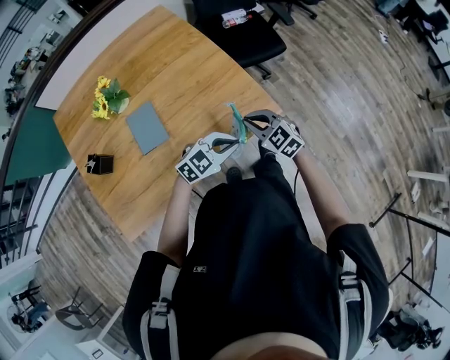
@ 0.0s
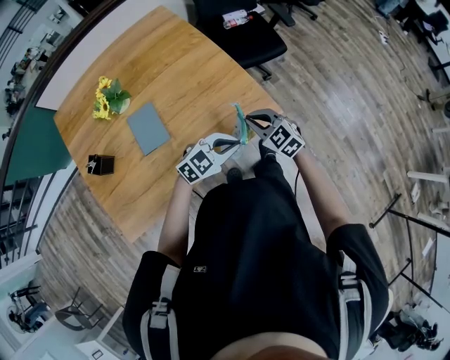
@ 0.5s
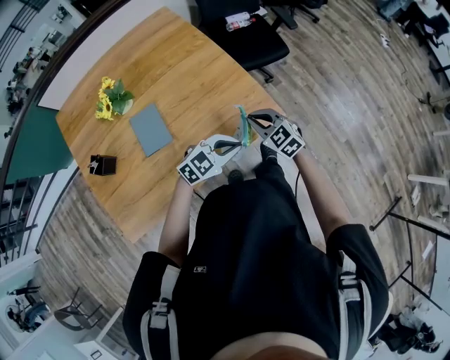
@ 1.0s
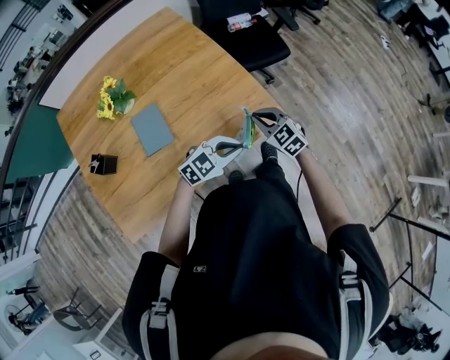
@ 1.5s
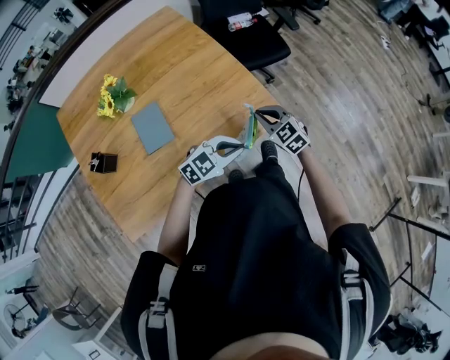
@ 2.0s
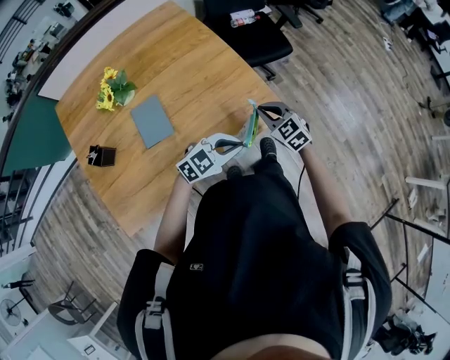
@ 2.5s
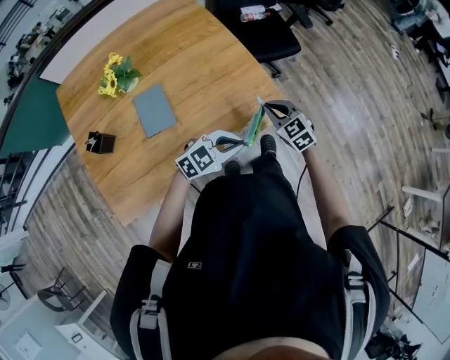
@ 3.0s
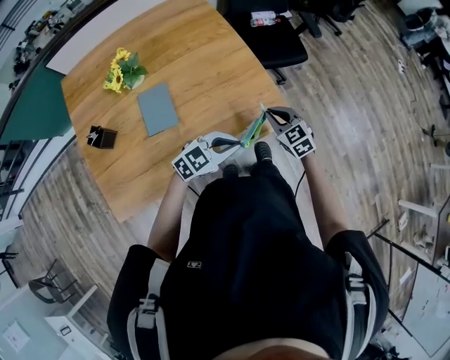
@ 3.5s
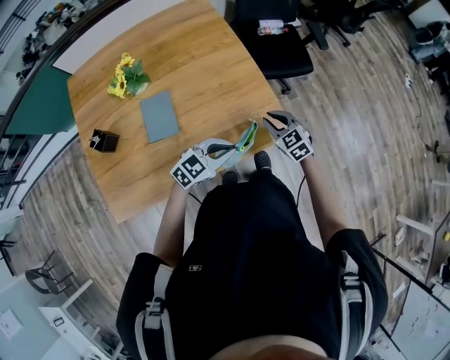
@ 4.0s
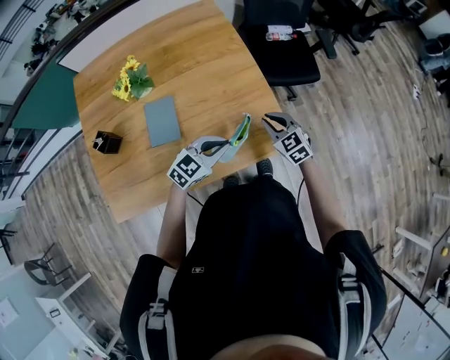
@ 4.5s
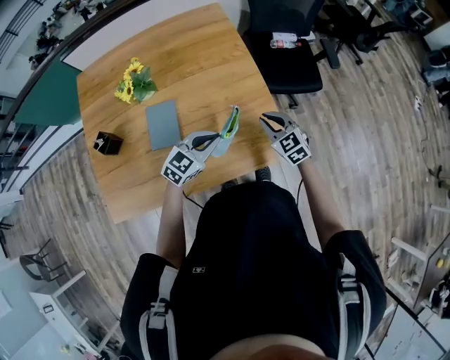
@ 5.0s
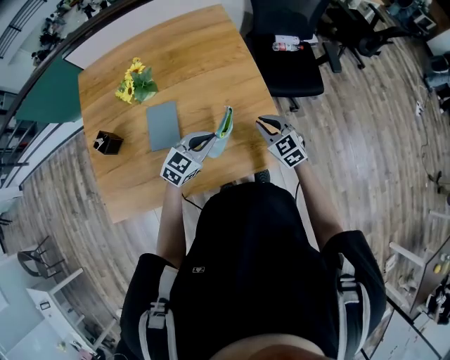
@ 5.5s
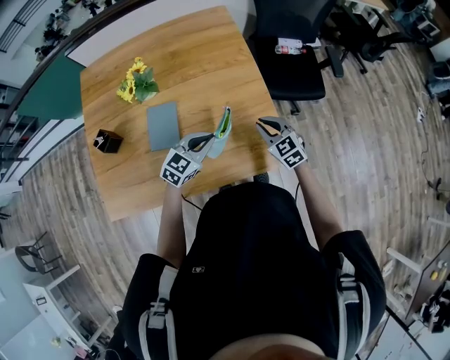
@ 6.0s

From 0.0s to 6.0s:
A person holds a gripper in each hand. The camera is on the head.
From 0.0s to 2.0s: There are only small adjustments of the grippers.
From 2.0s to 4.0s: The left gripper moves roughly 5 cm; the right gripper shifts by roughly 5 cm.
From 4.0s to 6.0s: The right gripper is displaced forward by roughly 5 cm, while the left gripper moves forward and to the left, approximately 15 cm, and swivels some 30 degrees.

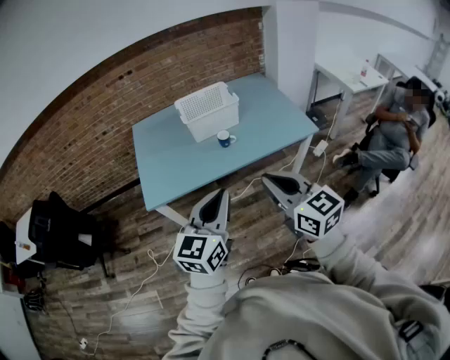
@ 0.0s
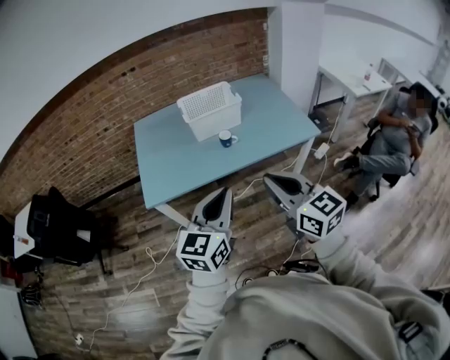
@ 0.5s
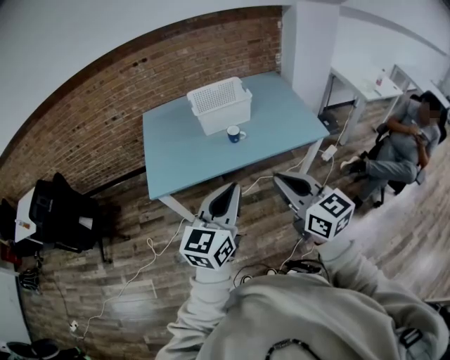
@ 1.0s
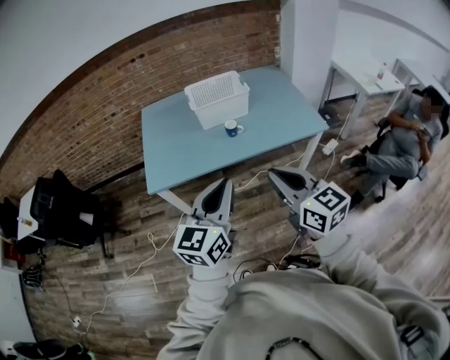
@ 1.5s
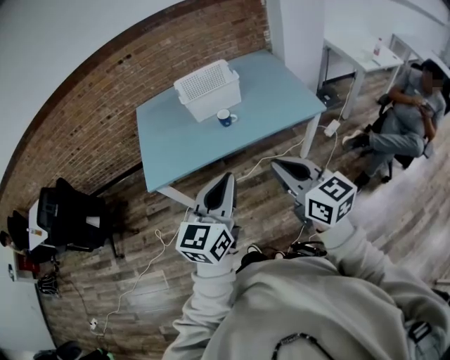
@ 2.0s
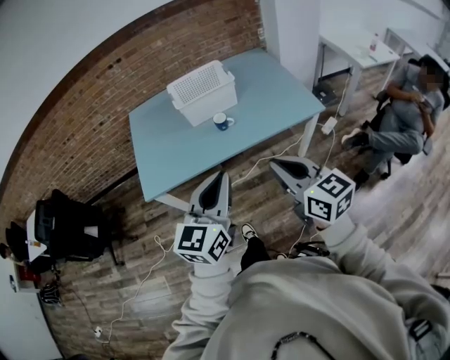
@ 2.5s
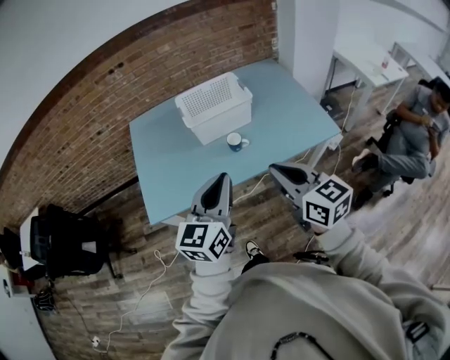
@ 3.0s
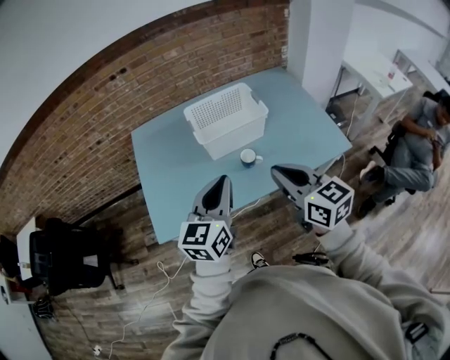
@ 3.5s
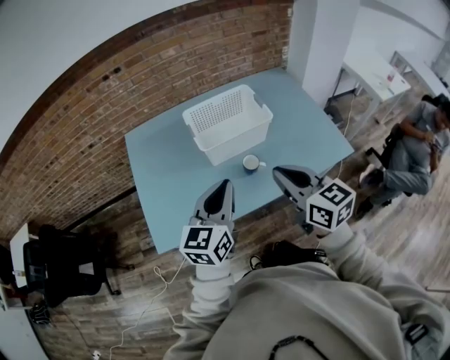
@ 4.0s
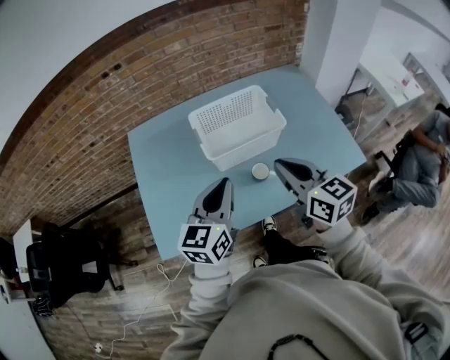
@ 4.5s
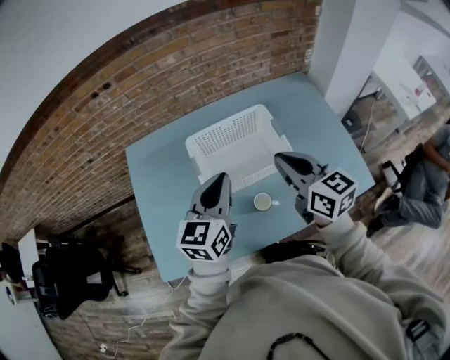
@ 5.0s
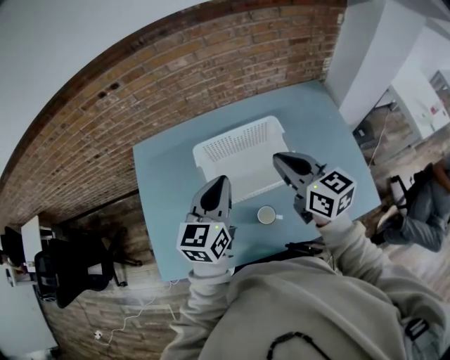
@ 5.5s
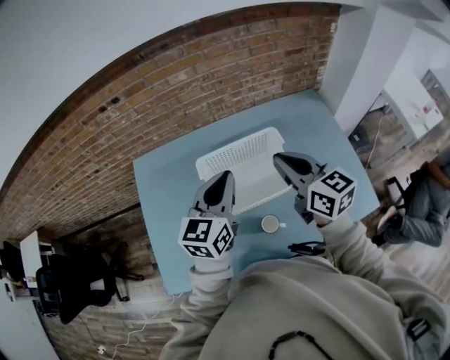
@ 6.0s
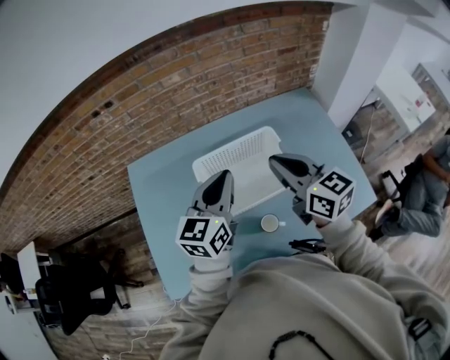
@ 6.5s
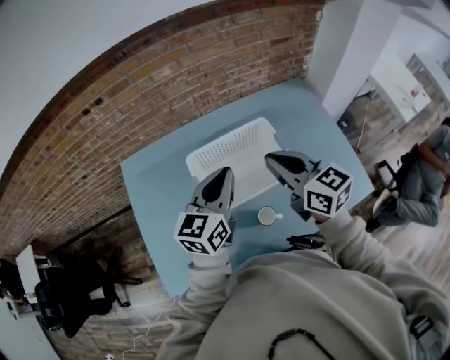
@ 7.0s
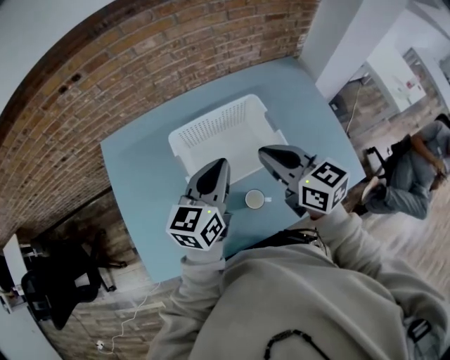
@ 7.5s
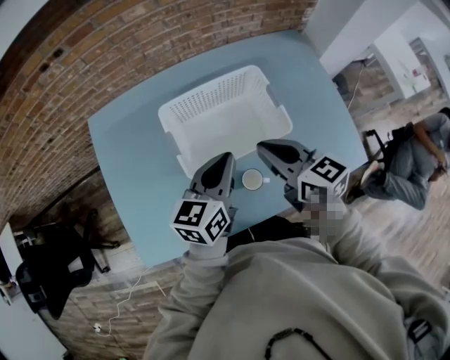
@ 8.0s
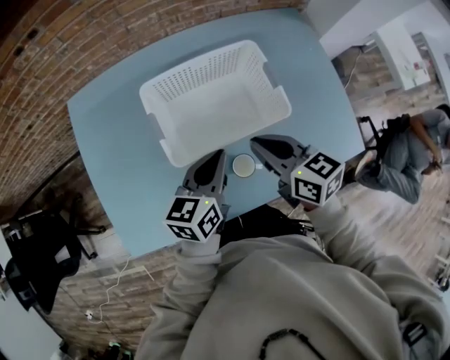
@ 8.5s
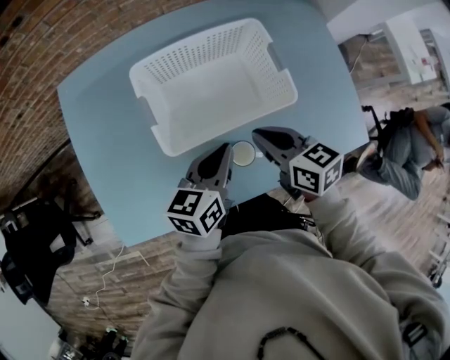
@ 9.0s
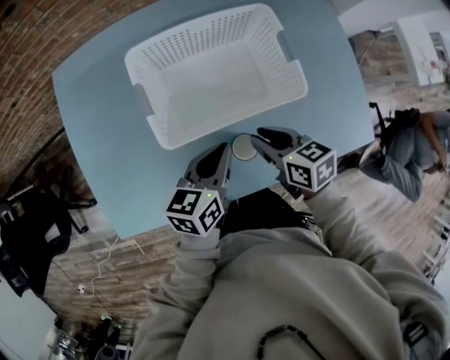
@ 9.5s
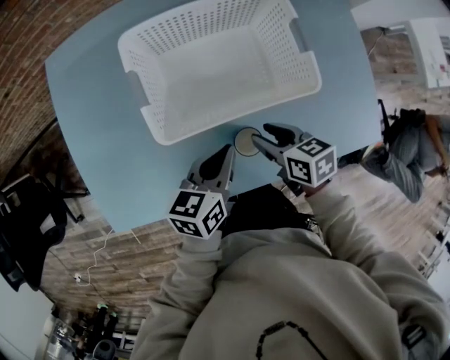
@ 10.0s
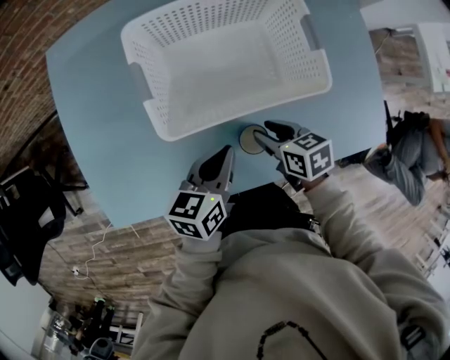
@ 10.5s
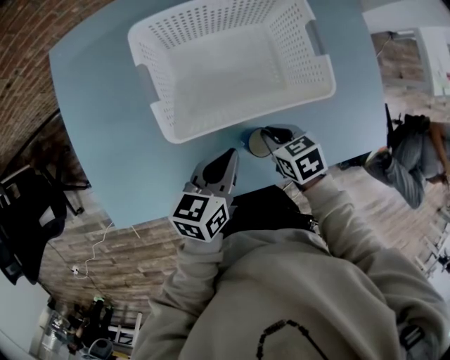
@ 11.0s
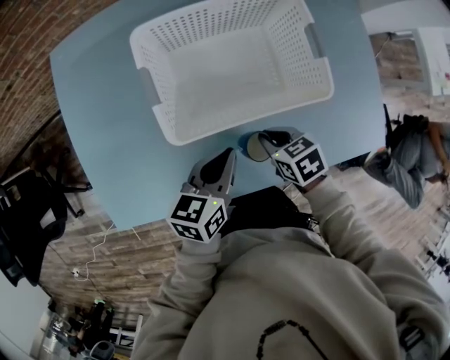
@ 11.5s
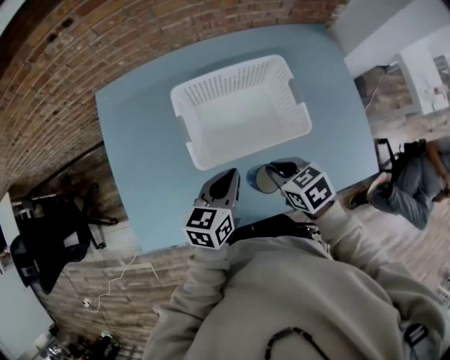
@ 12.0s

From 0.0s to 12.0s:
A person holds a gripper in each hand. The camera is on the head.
From 0.0s to 2.0s: The two grippers go roughly 5 cm to the right.
From 2.0s to 4.0s: The grippers both shift forward by approximately 35 cm.
From 4.0s to 6.0s: The two grippers go some 30 cm forward.
From 6.0s to 8.0s: The left gripper travels downward by roughly 10 cm. Meanwhile the right gripper moves downward and backward, some 15 cm.
From 8.0s to 10.0s: Both grippers travel together downward, approximately 20 cm. The right gripper swivels some 30 degrees, and opens; the left gripper swivels approximately 20 degrees.
From 10.0s to 12.0s: The two grippers go about 10 cm upward. The right gripper closes its fingers.

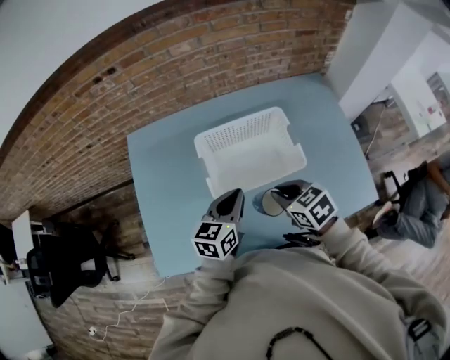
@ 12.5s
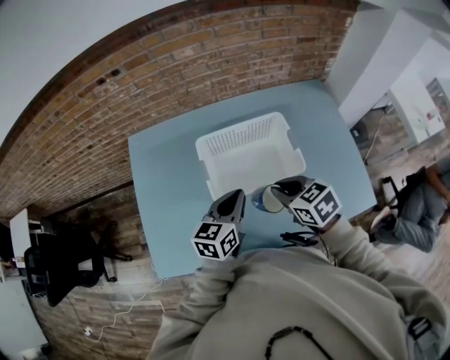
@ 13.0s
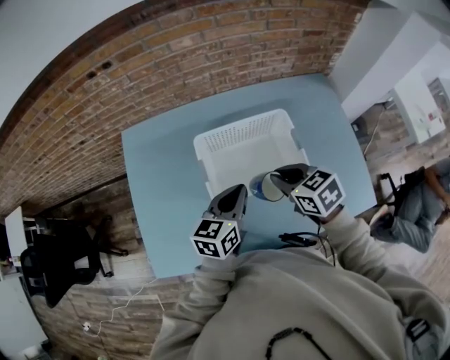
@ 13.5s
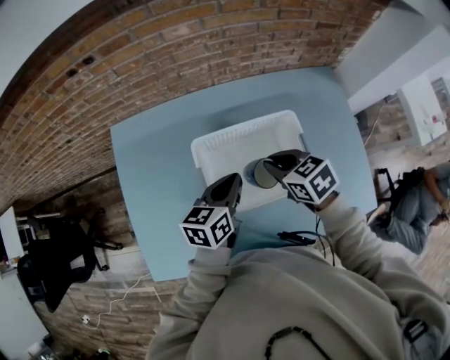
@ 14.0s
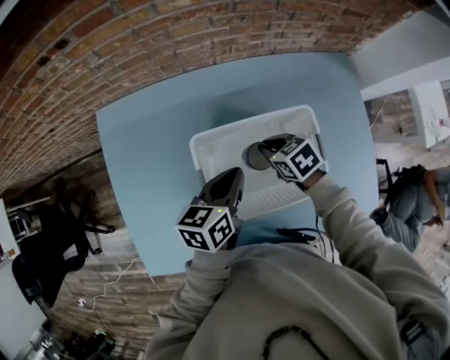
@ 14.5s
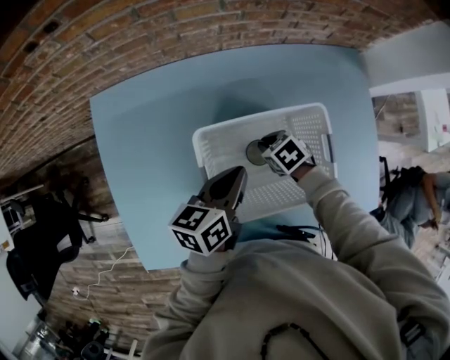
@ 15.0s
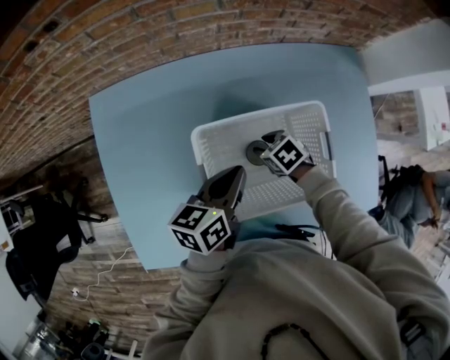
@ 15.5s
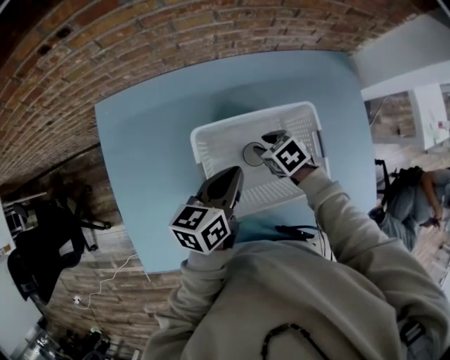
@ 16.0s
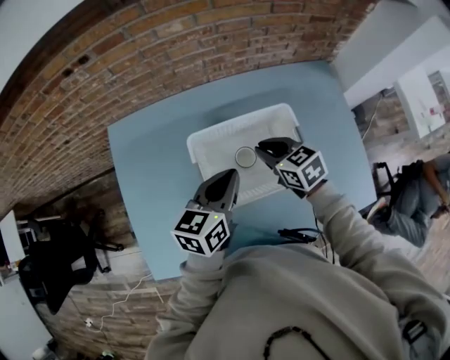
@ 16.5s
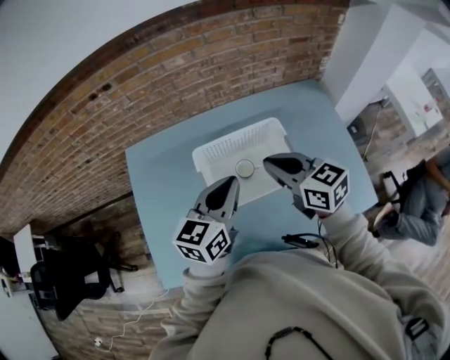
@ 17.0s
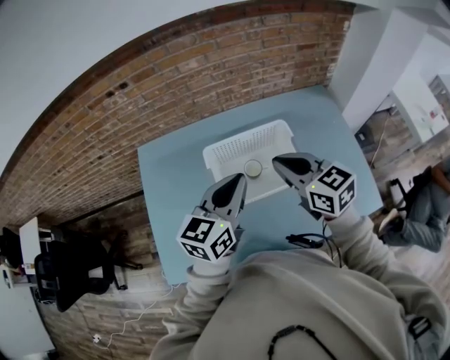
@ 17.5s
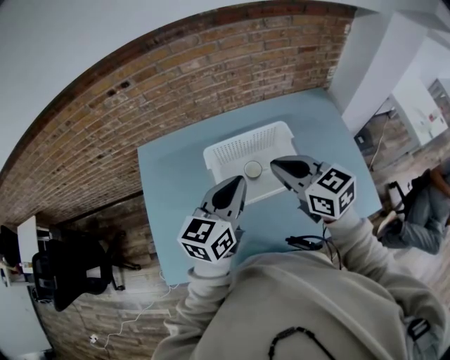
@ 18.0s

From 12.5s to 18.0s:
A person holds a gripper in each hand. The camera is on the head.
From 12.5s to 14.5s: The right gripper travels forward and downward by some 25 cm. Meanwhile the left gripper is displaced forward by roughly 15 cm.
From 14.5s to 16.0s: The right gripper opens.
From 16.0s to 18.0s: The left gripper is displaced upward and backward by approximately 20 cm, and rotates roughly 30 degrees. The right gripper travels upward and backward by some 35 cm, points its fingers approximately 50 degrees further upward, and closes.

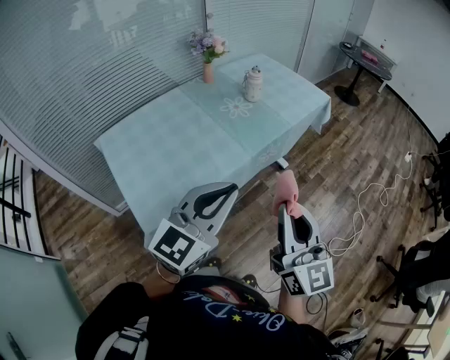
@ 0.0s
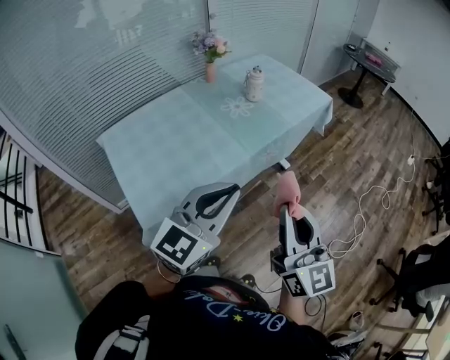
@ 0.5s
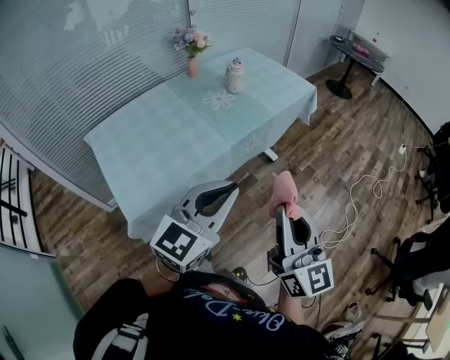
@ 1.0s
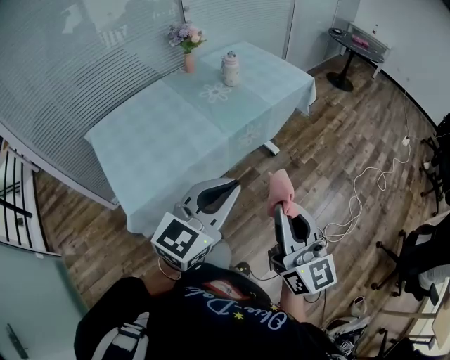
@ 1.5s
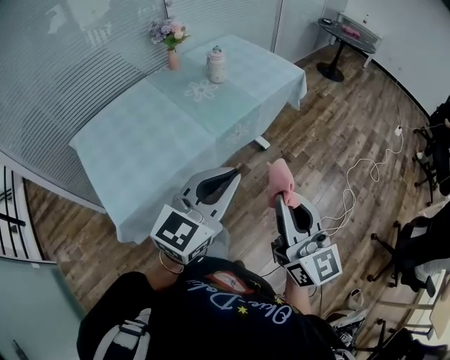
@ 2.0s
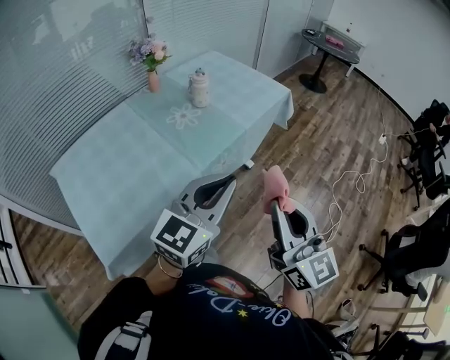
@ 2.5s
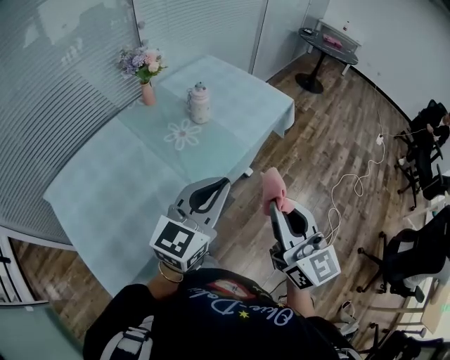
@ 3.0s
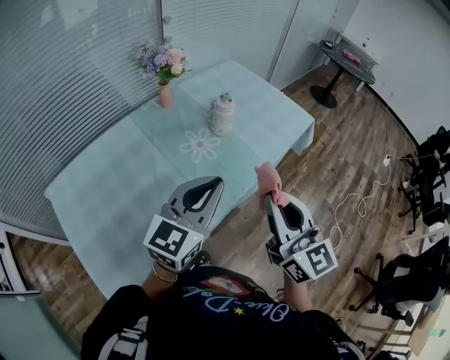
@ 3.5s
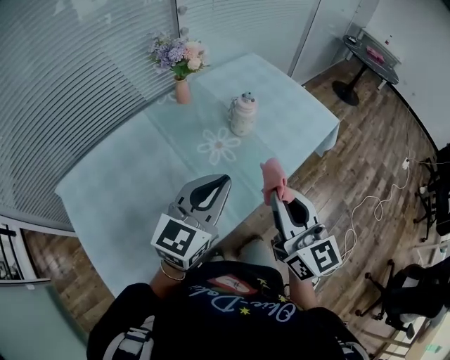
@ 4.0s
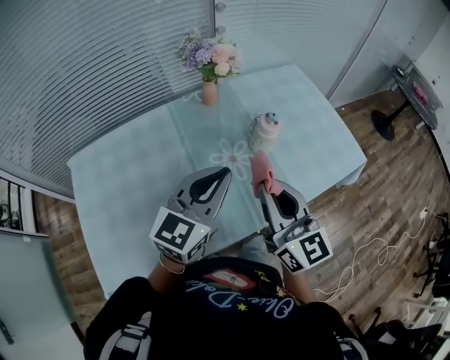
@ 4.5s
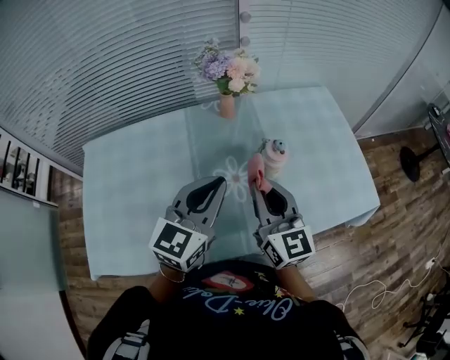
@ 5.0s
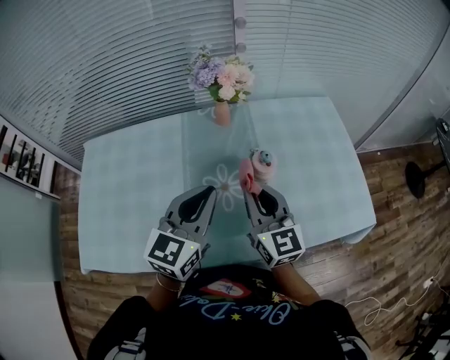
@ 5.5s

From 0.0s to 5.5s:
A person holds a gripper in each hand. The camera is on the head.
From 0.0s to 2.0s: The two grippers go about 10 cm to the right.
From 2.0s to 3.5s: The grippers both shift forward and to the left by roughly 30 cm.
From 3.5s to 5.5s: The left gripper shifts by approximately 20 cm, and rotates about 40 degrees, while the right gripper moves about 35 cm, and turns by about 30 degrees.
